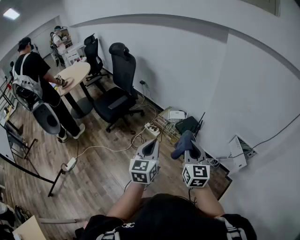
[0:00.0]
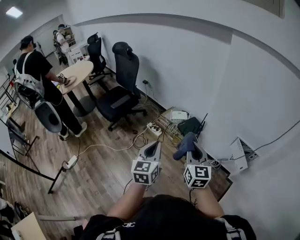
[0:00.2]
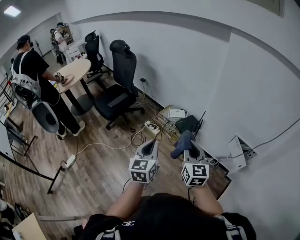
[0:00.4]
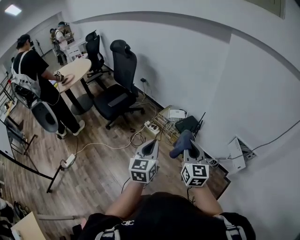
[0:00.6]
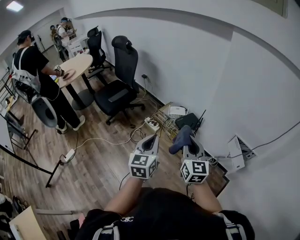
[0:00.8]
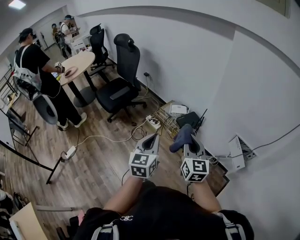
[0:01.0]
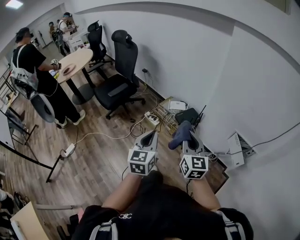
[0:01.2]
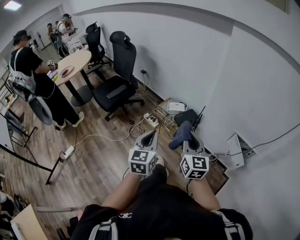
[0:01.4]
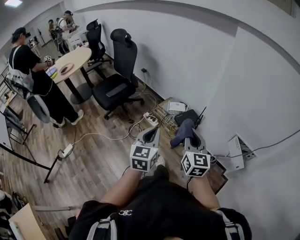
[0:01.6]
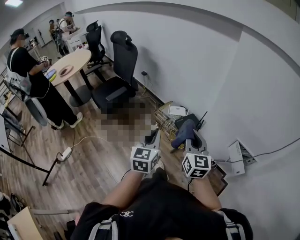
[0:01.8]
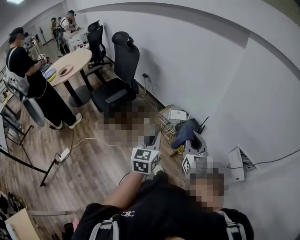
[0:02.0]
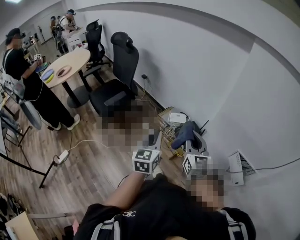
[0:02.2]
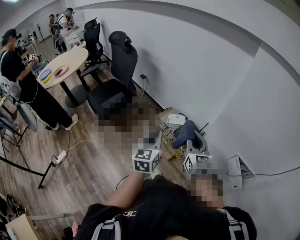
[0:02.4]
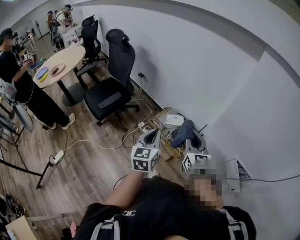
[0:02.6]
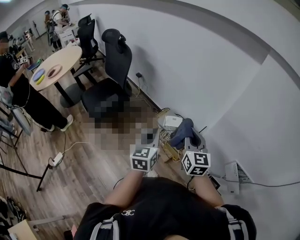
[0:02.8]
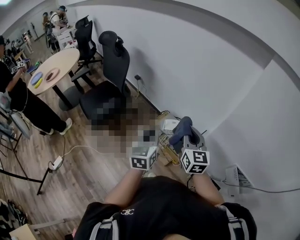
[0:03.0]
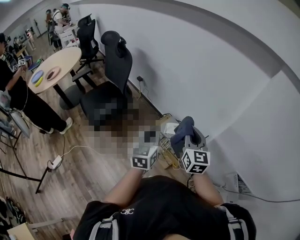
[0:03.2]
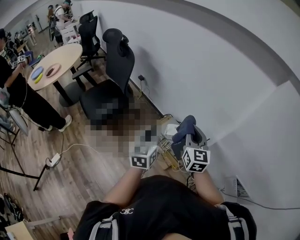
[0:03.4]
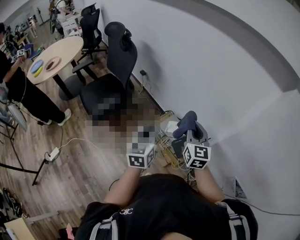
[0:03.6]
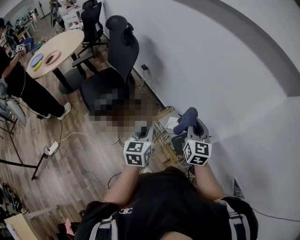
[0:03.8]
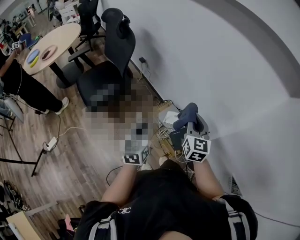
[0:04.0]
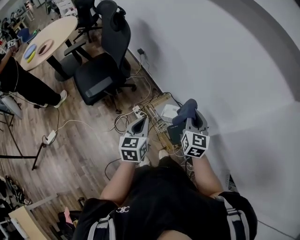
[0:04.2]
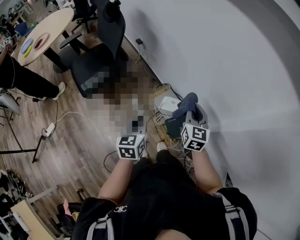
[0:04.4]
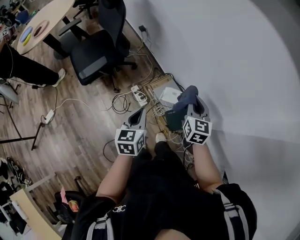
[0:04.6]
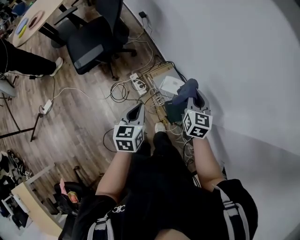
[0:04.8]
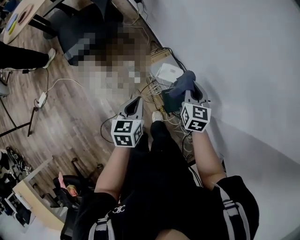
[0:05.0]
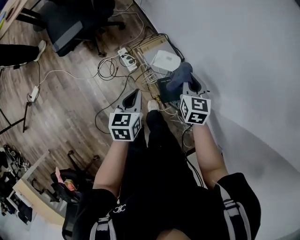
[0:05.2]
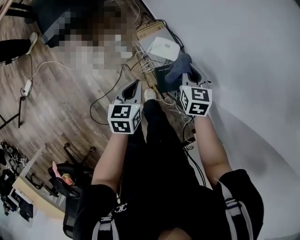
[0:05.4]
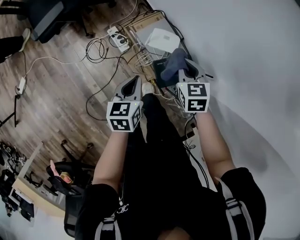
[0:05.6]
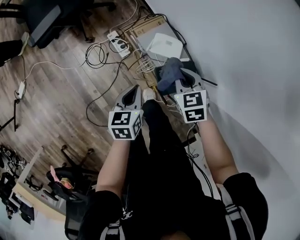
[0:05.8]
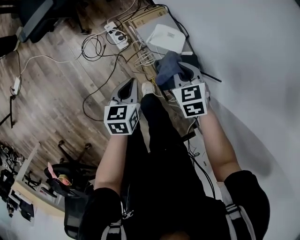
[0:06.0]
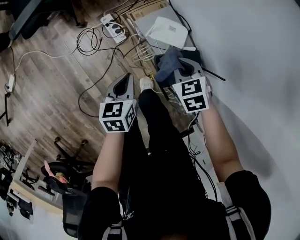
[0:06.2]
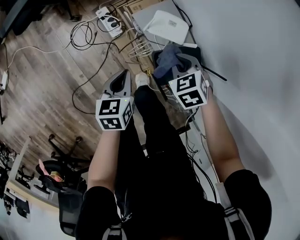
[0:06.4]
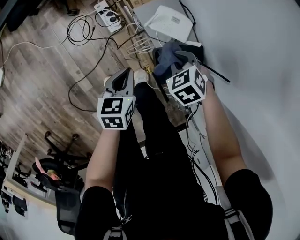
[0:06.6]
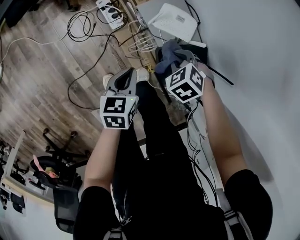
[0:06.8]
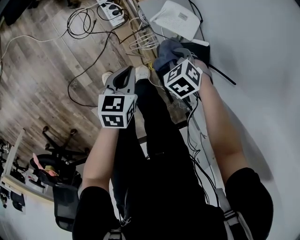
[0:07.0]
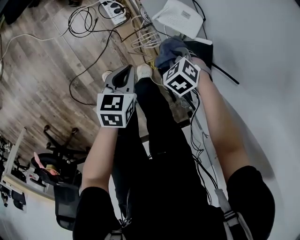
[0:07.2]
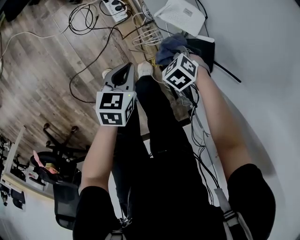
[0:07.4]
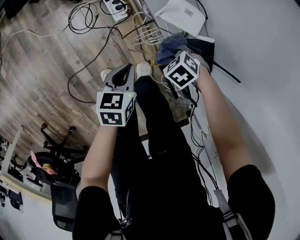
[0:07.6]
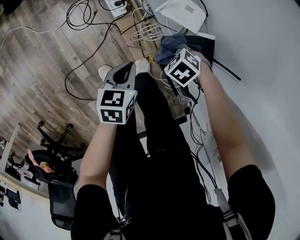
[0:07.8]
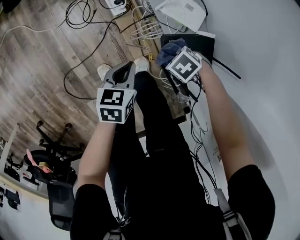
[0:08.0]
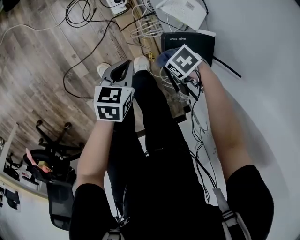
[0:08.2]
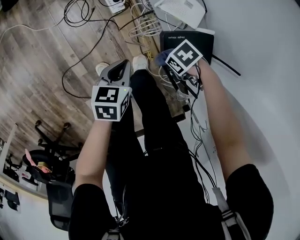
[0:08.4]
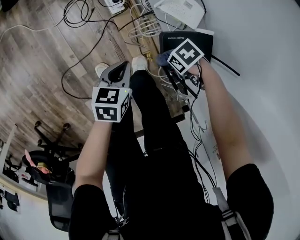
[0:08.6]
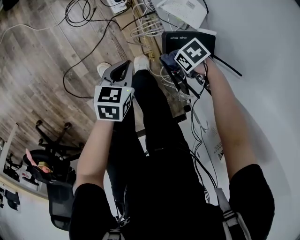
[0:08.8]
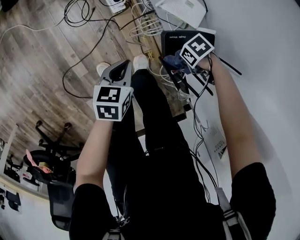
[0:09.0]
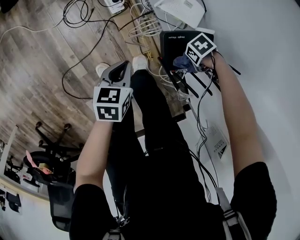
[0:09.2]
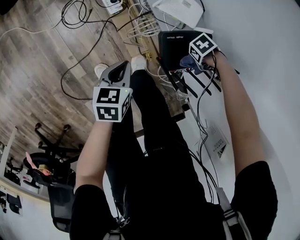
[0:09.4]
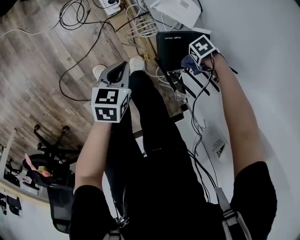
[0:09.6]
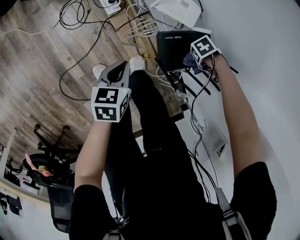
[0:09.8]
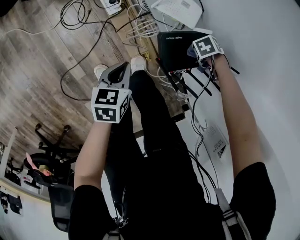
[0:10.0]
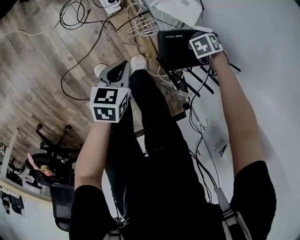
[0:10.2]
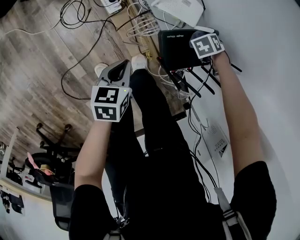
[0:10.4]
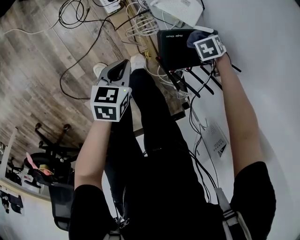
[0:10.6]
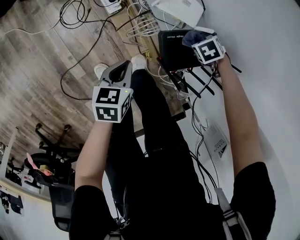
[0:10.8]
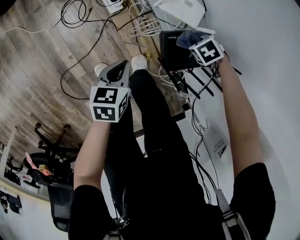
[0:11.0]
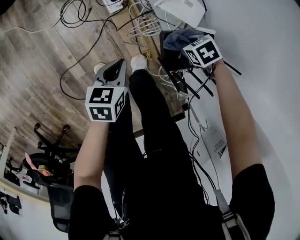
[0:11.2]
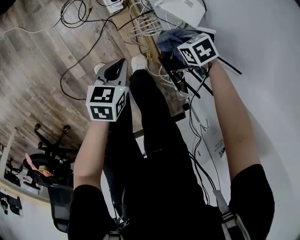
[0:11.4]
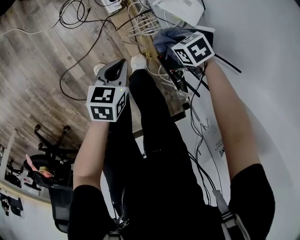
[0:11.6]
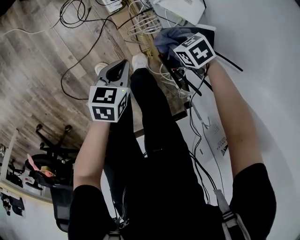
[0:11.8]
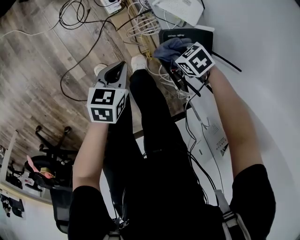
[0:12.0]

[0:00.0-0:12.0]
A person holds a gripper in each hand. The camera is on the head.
0:00.0 to 0:01.6: Both grippers move forward, roughly 5 cm.
0:01.6 to 0:03.0: Both grippers move forward, about 30 cm.
0:03.0 to 0:04.4: The grippers both shift forward and downward by approximately 20 cm.
0:04.4 to 0:06.0: The grippers both shift downward by approximately 35 cm. The left gripper rotates about 20 degrees. Meanwhile the right gripper points its fingers roughly 40 degrees further downward.
0:06.0 to 0:07.6: The left gripper goes approximately 15 cm downward; the right gripper is displaced downward by about 20 cm, and swivels approximately 40 degrees.
0:07.6 to 0:09.0: The right gripper moves about 10 cm, and rotates about 40 degrees.
0:09.0 to 0:10.4: The right gripper shifts by approximately 15 cm, and turns by some 40 degrees.
0:10.4 to 0:12.0: The right gripper ends up about 20 cm from where it was, and swivels approximately 40 degrees.

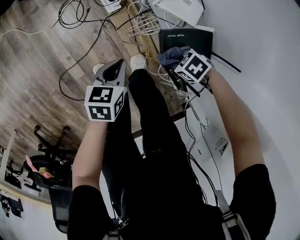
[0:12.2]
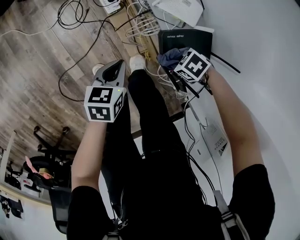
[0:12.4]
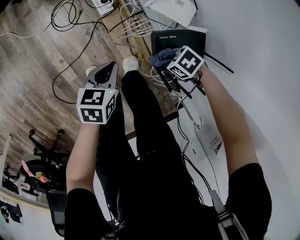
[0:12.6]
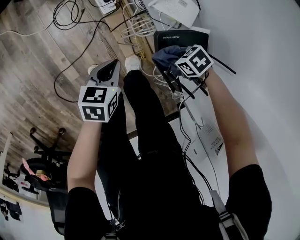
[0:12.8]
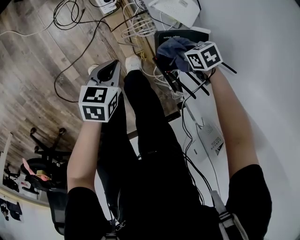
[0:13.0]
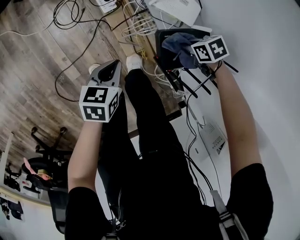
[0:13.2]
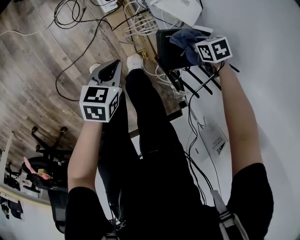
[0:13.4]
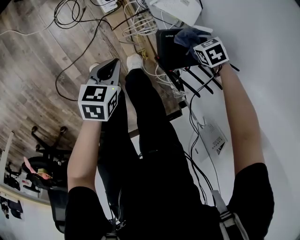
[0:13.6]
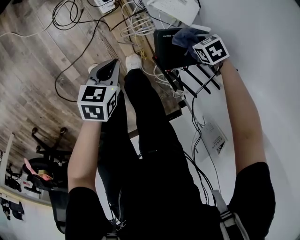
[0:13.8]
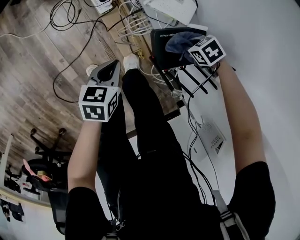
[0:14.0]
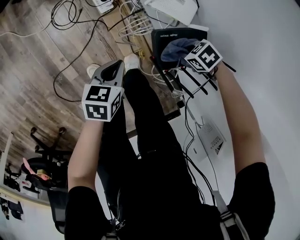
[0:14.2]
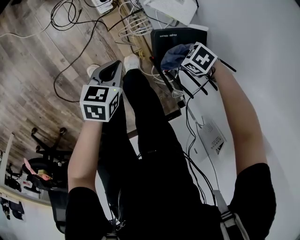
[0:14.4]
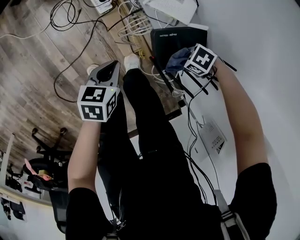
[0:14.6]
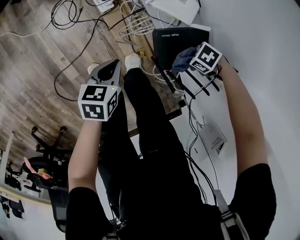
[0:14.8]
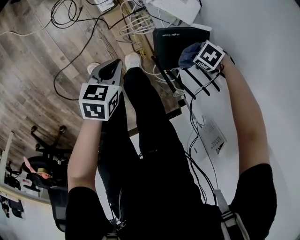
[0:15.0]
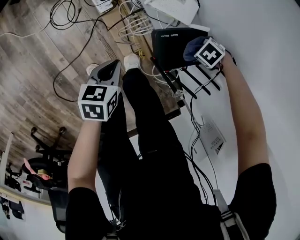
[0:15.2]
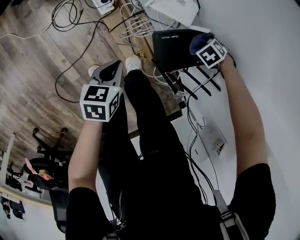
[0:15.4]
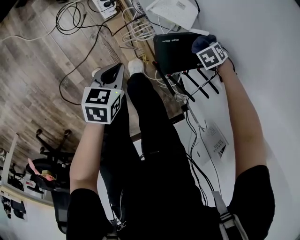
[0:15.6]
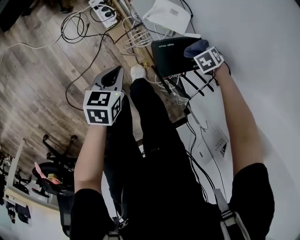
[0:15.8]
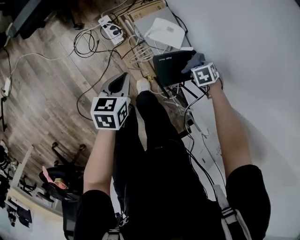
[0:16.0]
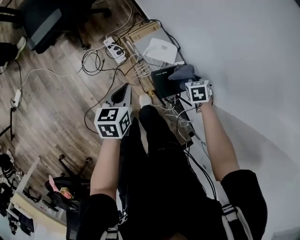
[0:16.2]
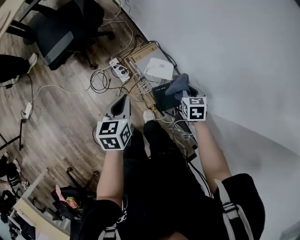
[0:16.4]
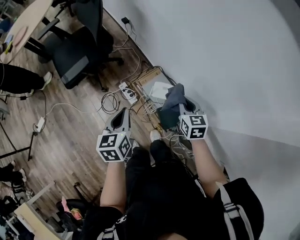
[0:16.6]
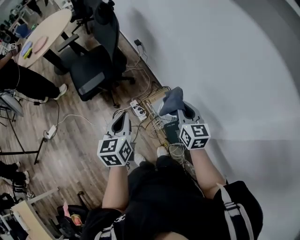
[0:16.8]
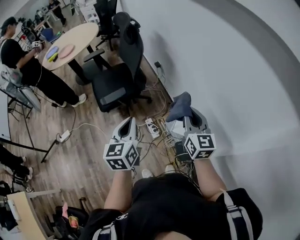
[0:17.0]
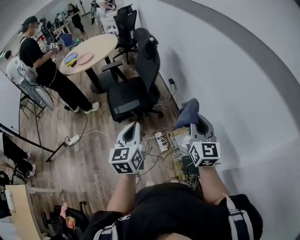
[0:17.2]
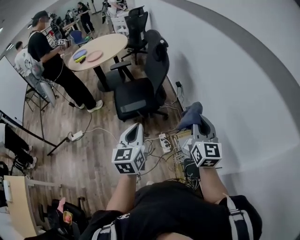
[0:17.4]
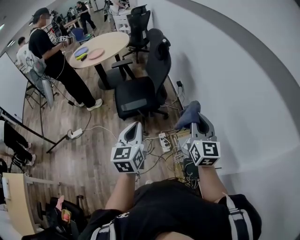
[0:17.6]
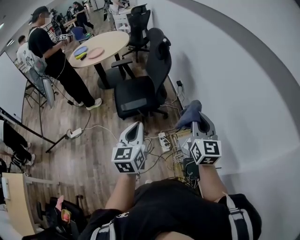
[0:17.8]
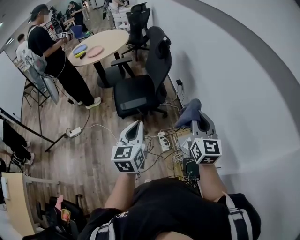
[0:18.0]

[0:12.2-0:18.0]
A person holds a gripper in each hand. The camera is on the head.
0:12.2 to 0:13.6: The right gripper changes place by some 15 cm, and turns by approximately 20 degrees.
0:13.6 to 0:15.0: The right gripper changes place by approximately 10 cm, and changes its angle by approximately 30 degrees.
0:15.0 to 0:16.6: Both grippers move upward, some 50 cm. The left gripper swivels about 30 degrees. Meanwhile the right gripper swivels roughly 100 degrees.
0:16.6 to 0:18.0: Both grippers move upward and to the left, about 35 cm. The right gripper tips its fingers upward by roughly 40 degrees. Meanwhile the left gripper changes its angle by some 30 degrees.

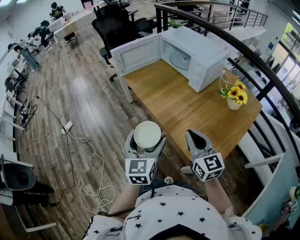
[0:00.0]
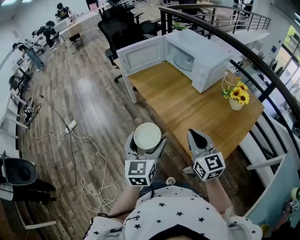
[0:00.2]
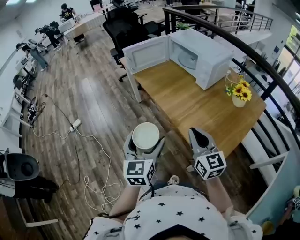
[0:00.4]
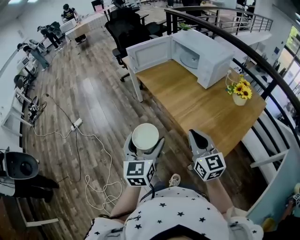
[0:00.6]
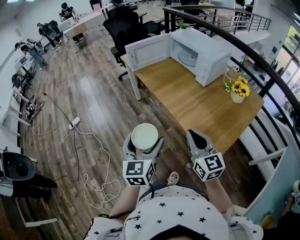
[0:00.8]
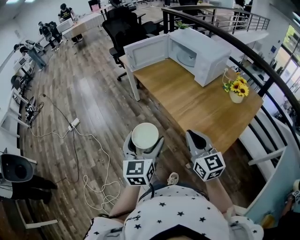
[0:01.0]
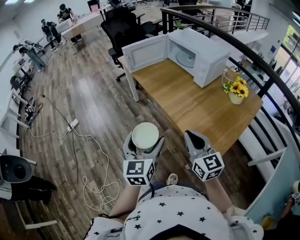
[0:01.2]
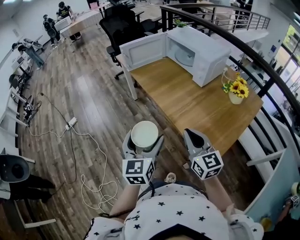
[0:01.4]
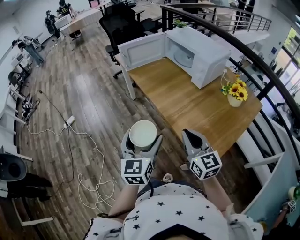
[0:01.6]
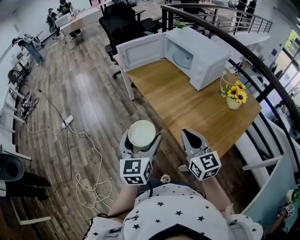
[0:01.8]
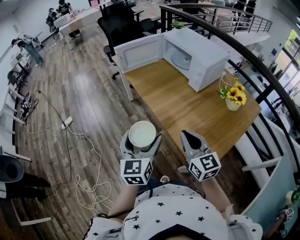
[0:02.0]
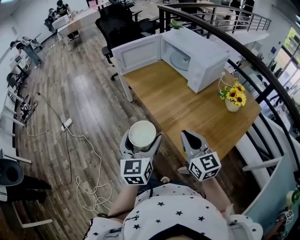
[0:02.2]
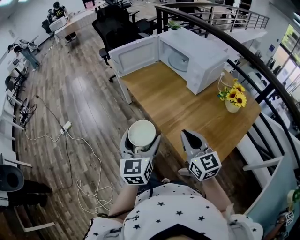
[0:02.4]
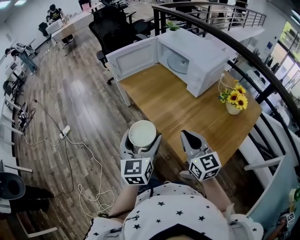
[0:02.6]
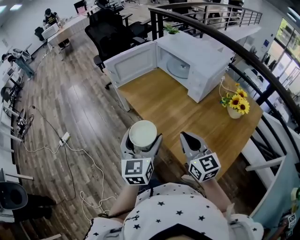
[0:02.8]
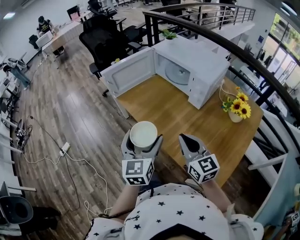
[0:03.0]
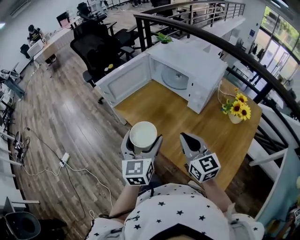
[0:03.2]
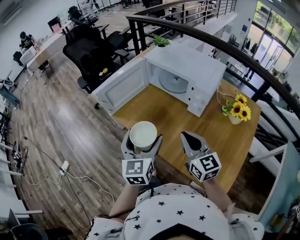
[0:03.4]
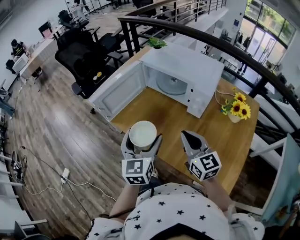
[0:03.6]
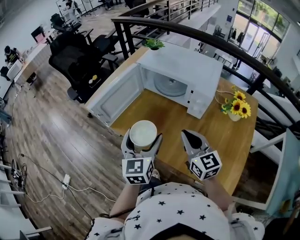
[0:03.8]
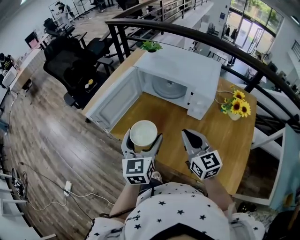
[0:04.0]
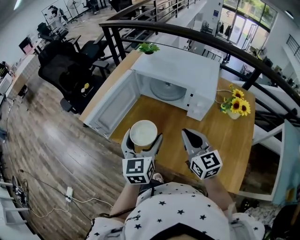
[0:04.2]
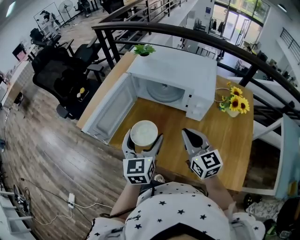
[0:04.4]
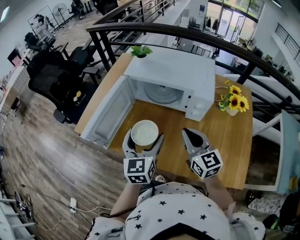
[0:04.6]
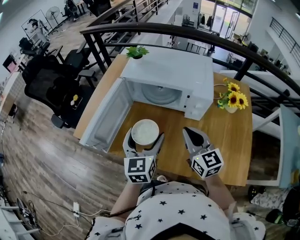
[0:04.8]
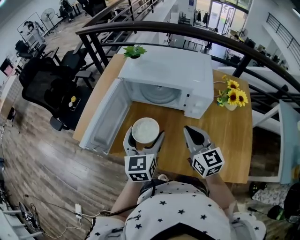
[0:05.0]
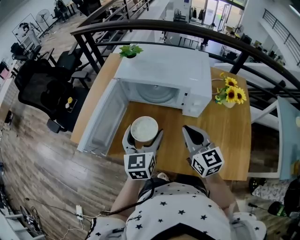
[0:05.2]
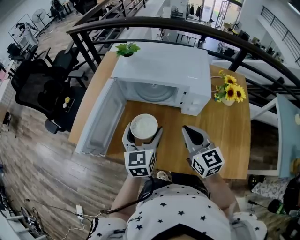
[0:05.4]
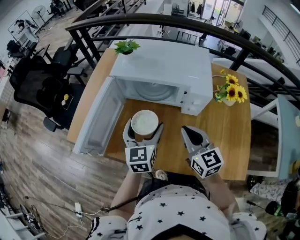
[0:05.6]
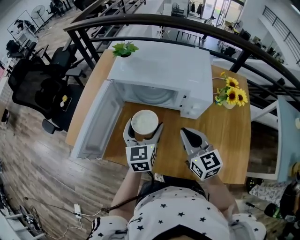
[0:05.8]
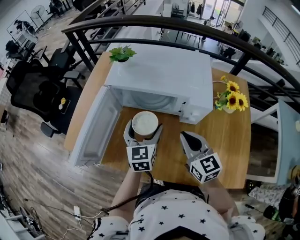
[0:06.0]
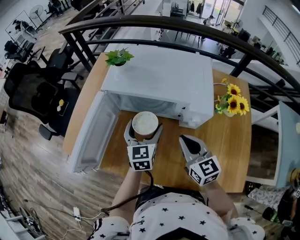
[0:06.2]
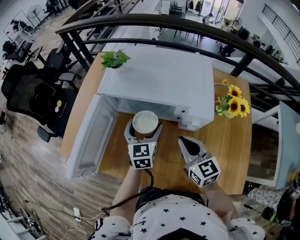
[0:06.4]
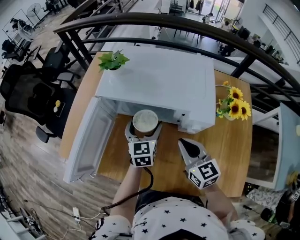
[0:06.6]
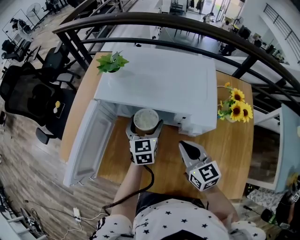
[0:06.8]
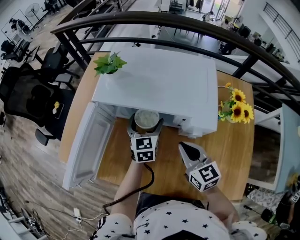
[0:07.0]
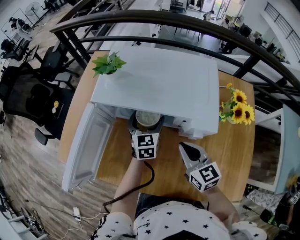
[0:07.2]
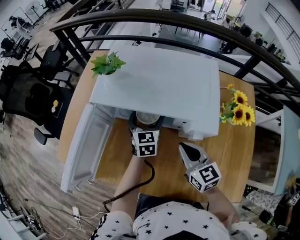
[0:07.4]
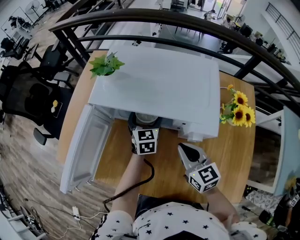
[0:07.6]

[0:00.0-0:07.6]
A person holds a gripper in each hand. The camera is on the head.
0:00.0 to 0:01.6: The grippers both shift backward by approximately 5 cm.
0:01.6 to 0:03.0: The two grippers go approximately 20 cm forward.
0:03.0 to 0:04.6: The right gripper shifts by about 20 cm, and changes its angle by about 30 degrees. Meanwhile the left gripper shifts by approximately 25 cm, and changes its angle by roughly 30 degrees.
0:04.6 to 0:06.0: The right gripper moves forward, roughly 5 cm; the left gripper goes approximately 15 cm forward and downward.
0:06.0 to 0:07.6: The left gripper travels forward, downward and to the right by about 20 cm. The right gripper goes roughly 10 cm forward and downward.
